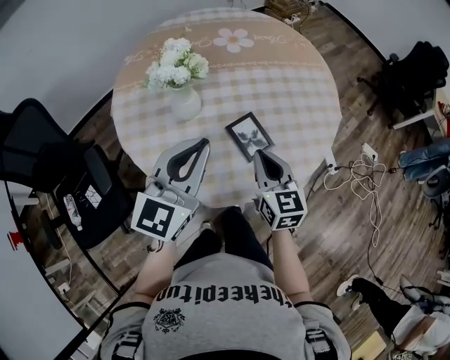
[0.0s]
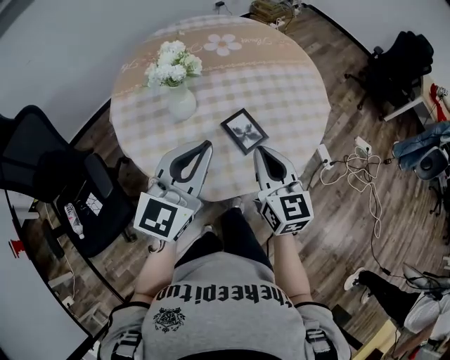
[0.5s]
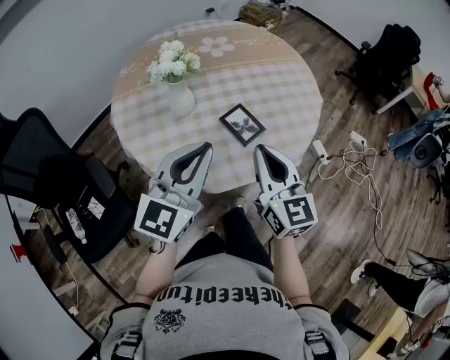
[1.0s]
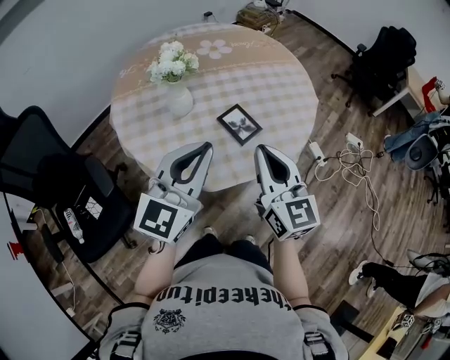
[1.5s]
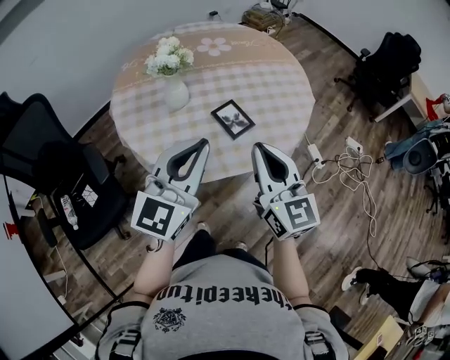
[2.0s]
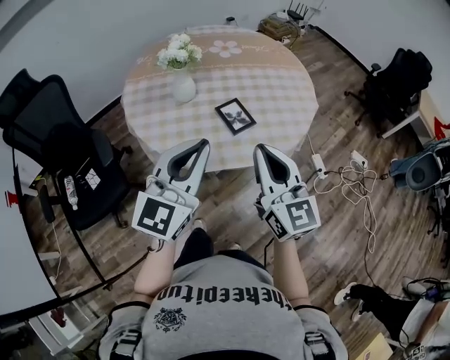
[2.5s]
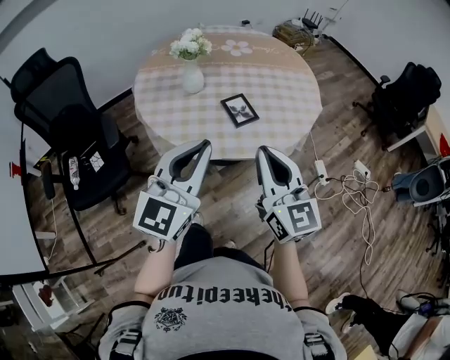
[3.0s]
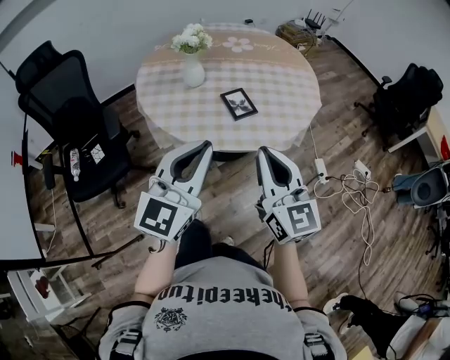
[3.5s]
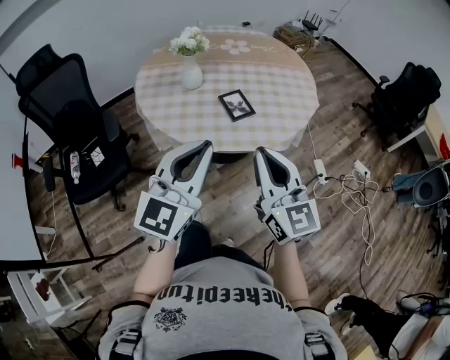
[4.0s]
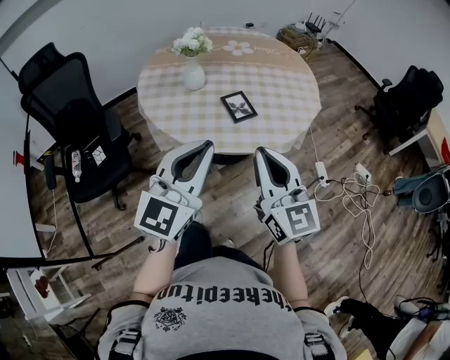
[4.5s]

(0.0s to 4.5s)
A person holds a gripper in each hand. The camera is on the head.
0.0s - 2.0s: The left gripper heads backward, covering about 15 cm. The right gripper shifts approximately 20 cm backward and upward, and rotates some 20 degrees.
2.0s - 4.5s: Both grippers travel together backward and to the right, some 15 cm.

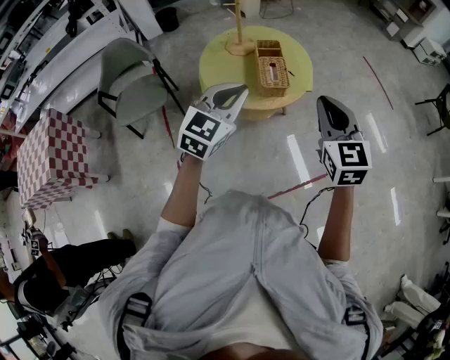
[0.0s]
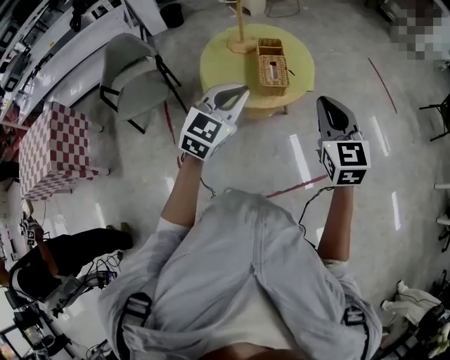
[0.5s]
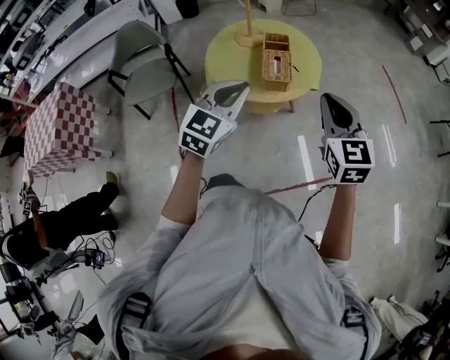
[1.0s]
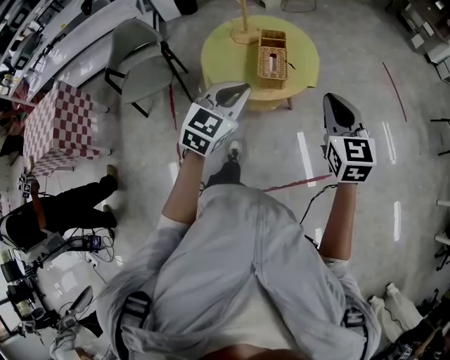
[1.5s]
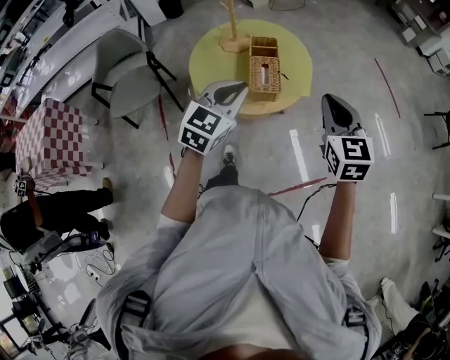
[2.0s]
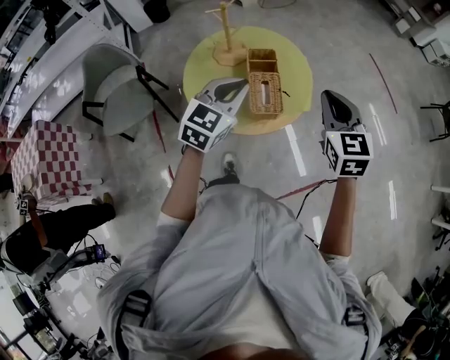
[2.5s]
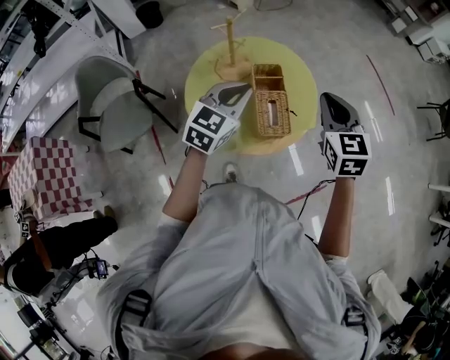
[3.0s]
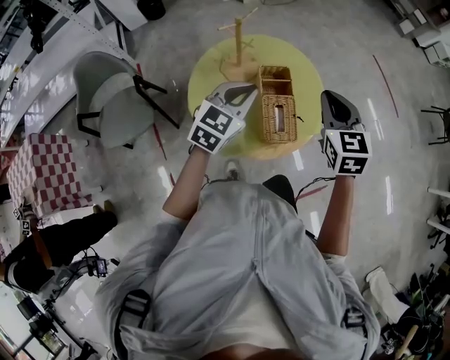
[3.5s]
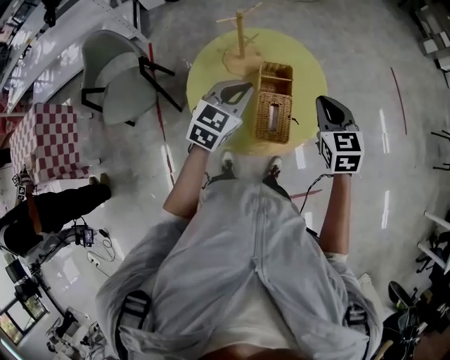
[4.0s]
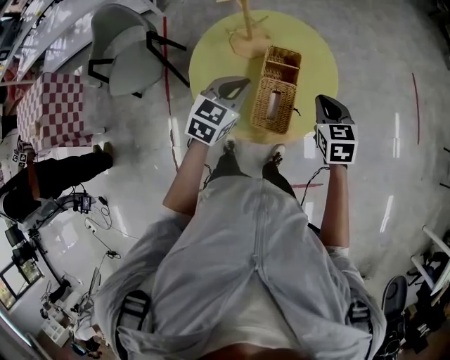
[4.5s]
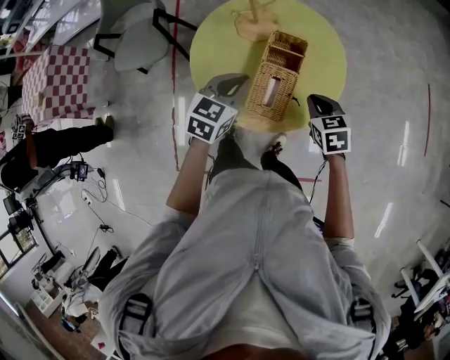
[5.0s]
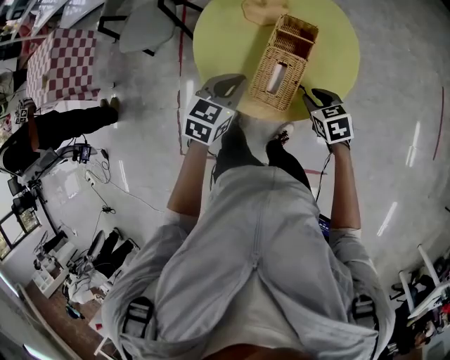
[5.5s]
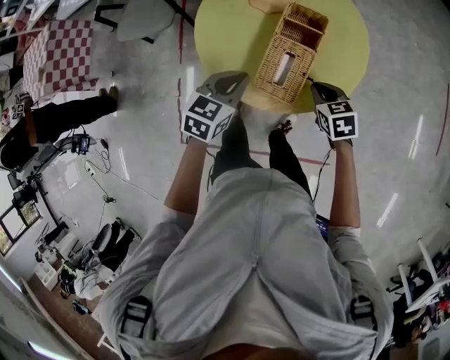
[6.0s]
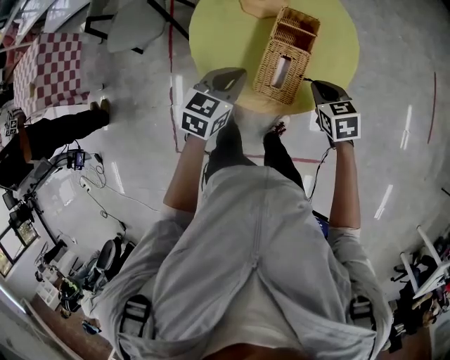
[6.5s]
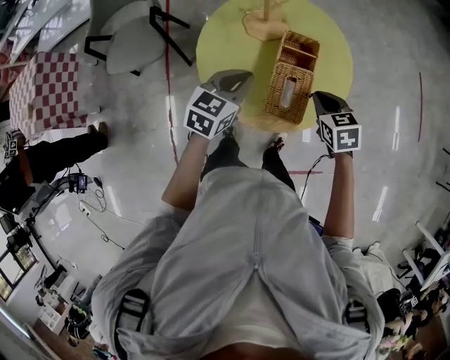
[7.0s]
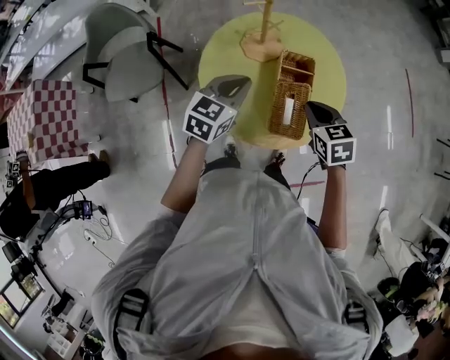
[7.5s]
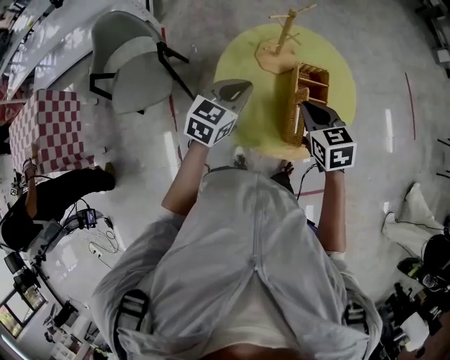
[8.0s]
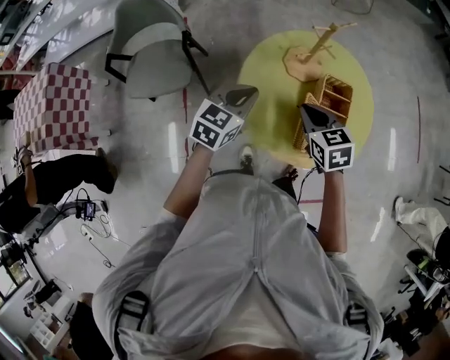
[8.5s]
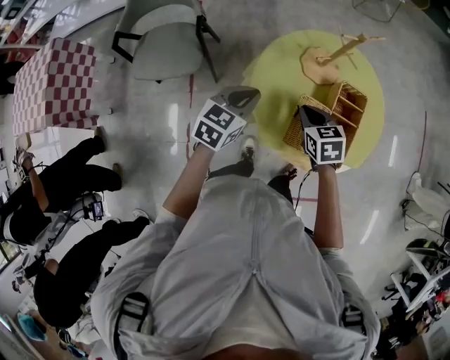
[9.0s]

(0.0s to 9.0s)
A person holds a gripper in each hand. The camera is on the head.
0.0s - 2.0s: Both grippers travel together forward, to the right and downward, some 15 cm.
2.0s - 4.5s: The two grippers go roughly 30 cm forward and downward. The left gripper swivels roughly 20 degrees; the right gripper turns by about 20 degrees.
4.5s - 7.0s: The left gripper travels backward and back again, about 10 cm each way. The right gripper heads downward, covering some 5 cm, and opens, then closes once more.
7.0s - 9.0s: The two grippers go approximately 20 cm to the left.

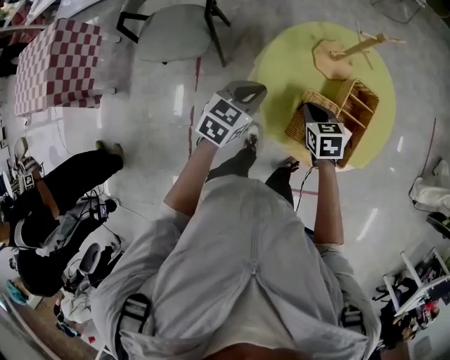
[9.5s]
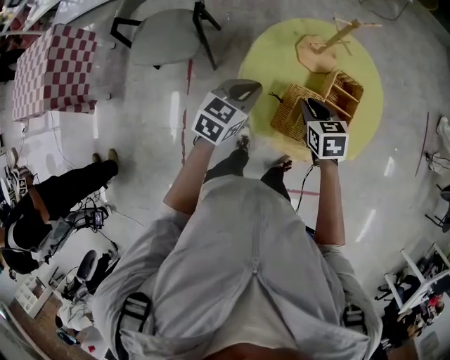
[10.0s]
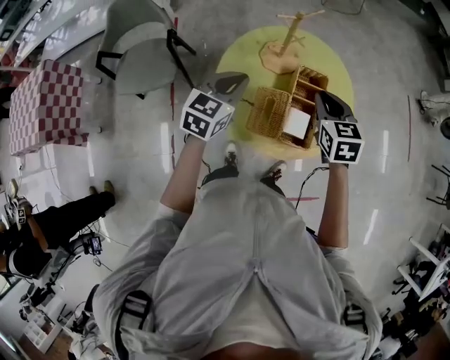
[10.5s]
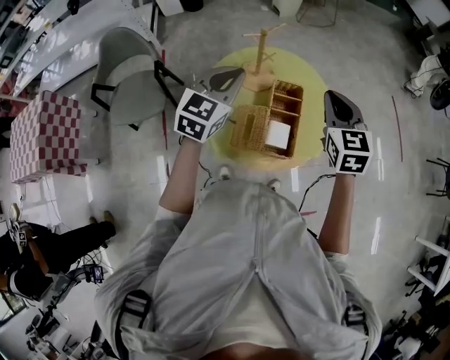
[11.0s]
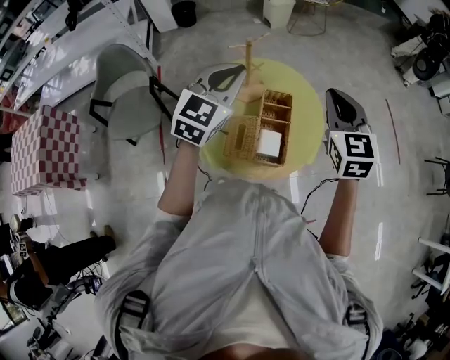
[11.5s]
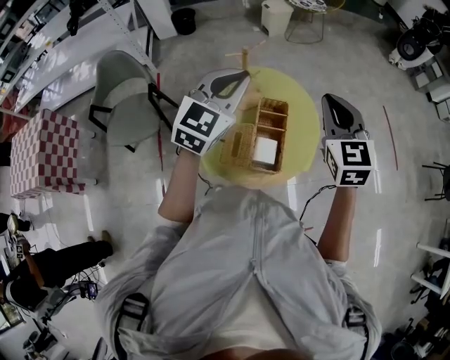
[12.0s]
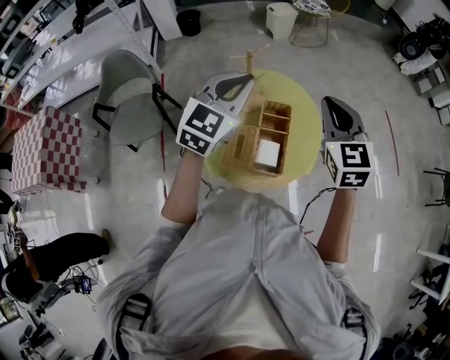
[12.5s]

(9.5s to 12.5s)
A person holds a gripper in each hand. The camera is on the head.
9.5s - 11.0s: Both grippers move upward and to the right, approximately 30 cm. The right gripper turns by roughly 40 degrees. The left gripper turns by some 30 degrees.
11.0s - 12.5s: The left gripper moves upward and to the right, approximately 10 cm. The right gripper heads upward, covering some 5 cm.

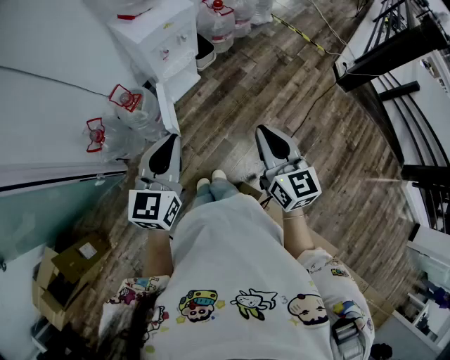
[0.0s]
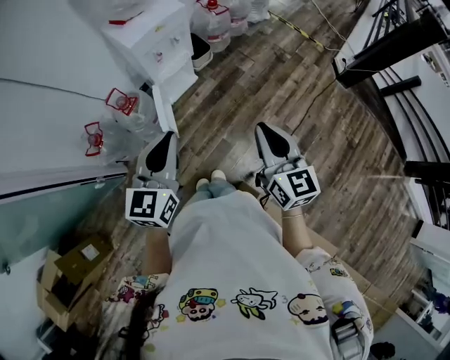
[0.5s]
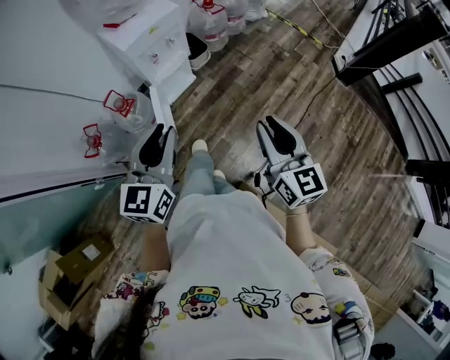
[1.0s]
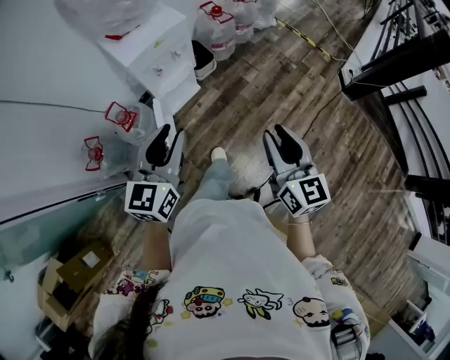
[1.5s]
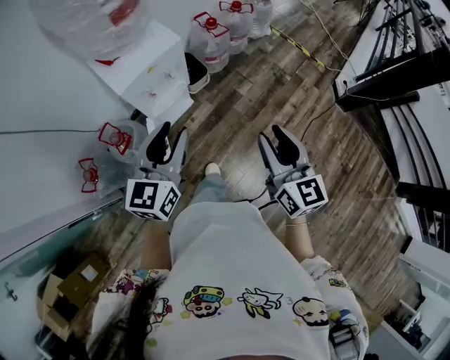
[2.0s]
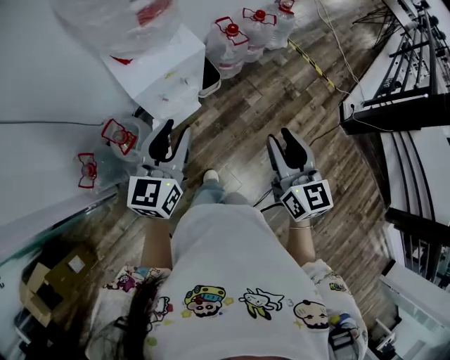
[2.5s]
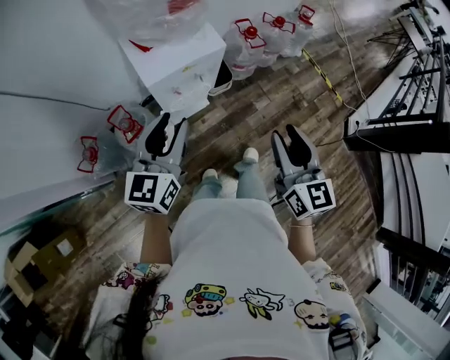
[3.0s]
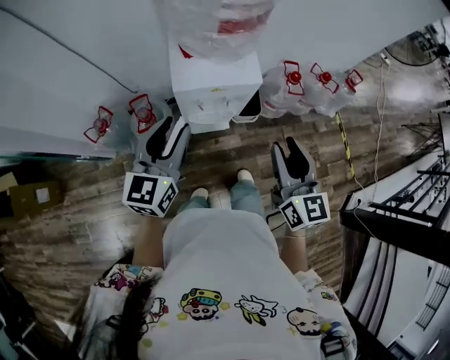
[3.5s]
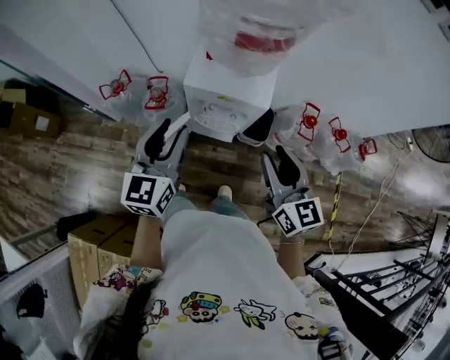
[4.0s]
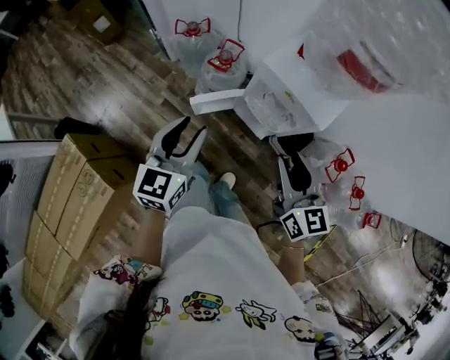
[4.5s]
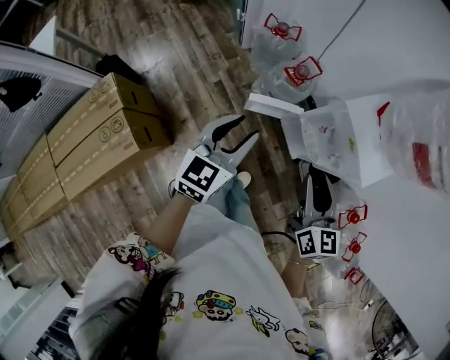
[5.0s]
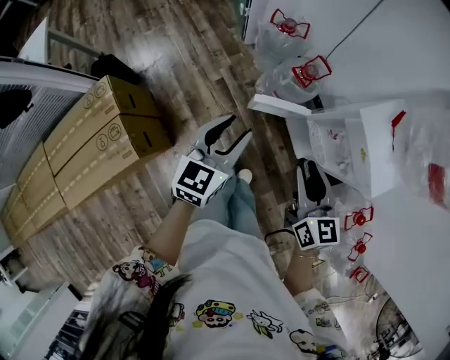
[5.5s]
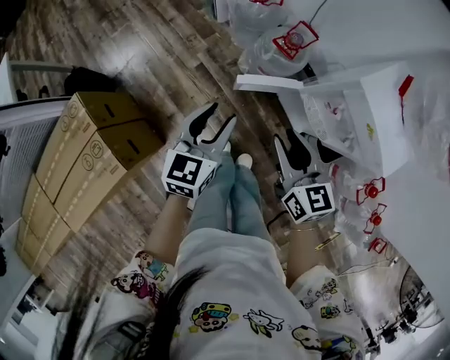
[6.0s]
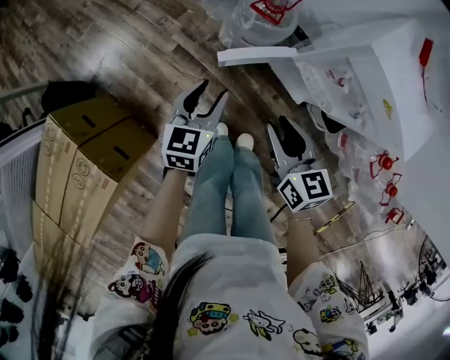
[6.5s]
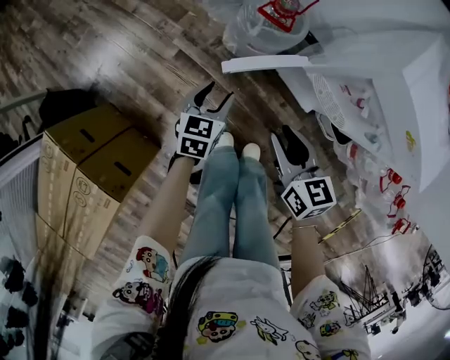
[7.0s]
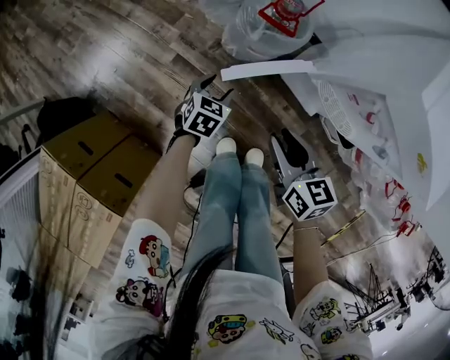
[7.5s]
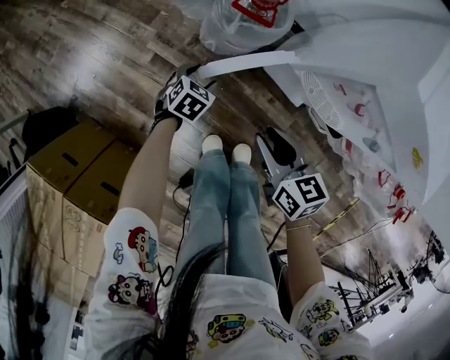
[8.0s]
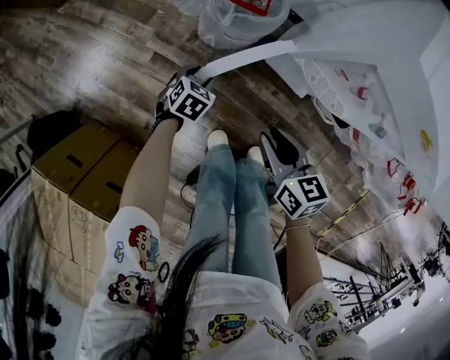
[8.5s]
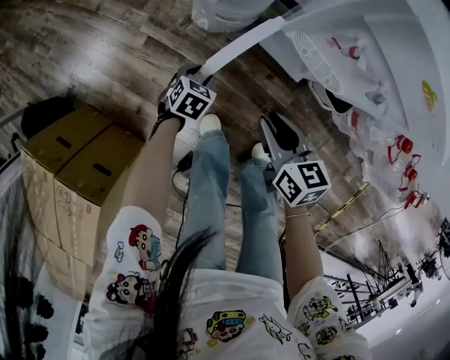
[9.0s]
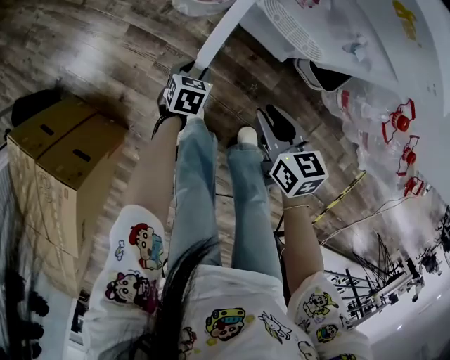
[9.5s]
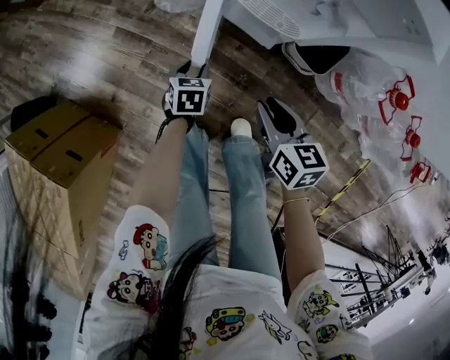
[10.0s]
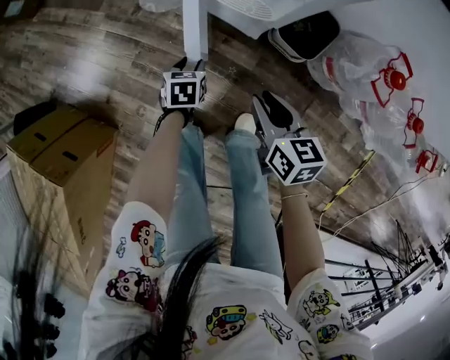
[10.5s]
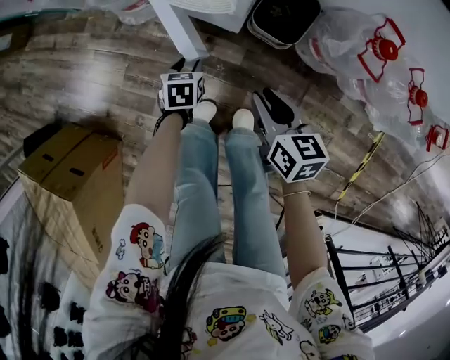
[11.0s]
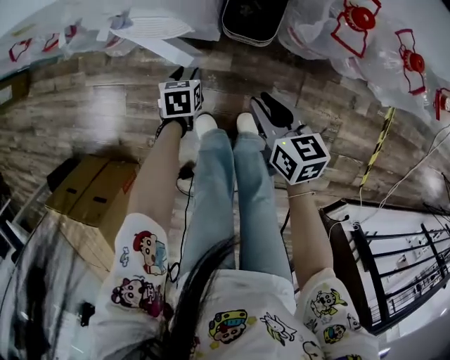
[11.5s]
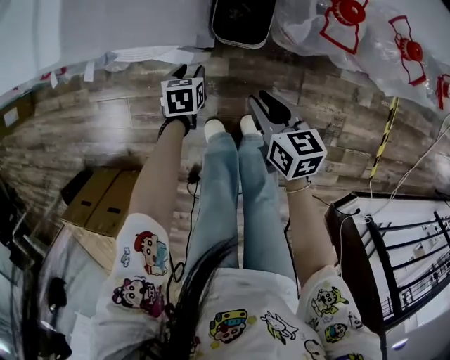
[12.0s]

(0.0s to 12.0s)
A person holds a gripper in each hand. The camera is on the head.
0.0s - 2.0s: Both grippers travel together forward, approximately 25 cm. The right gripper opens. Meanwhile the left gripper opens.
2.0s - 4.0s: The left gripper shifts by roughly 10 cm, and changes its angle by some 60 degrees. Meanwhile the right gripper shifts by some 30 cm, and changes its angle by roughly 60 degrees.
4.0s - 6.0s: The left gripper travels downward by about 20 cm, and rotates about 40 degrees. Meanwhile the right gripper moves about 35 cm, and rotates approximately 40 degrees.
6.0s - 8.0s: The left gripper moves downward, about 40 cm, and tilts its fingers some 40 degrees downward, while the right gripper moves downward, about 25 cm, and rotates some 20 degrees.
8.0s - 10.0s: The two grippers go some 25 cm to the right and backward. The left gripper turns by some 20 degrees, and closes its fingers.
10.0s - 12.0s: The two grippers go some 25 cm to the right. The left gripper rotates roughly 20 degrees. Meanwhile the right gripper changes its angle by roughly 20 degrees.
